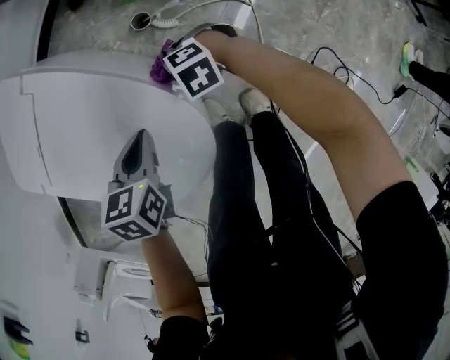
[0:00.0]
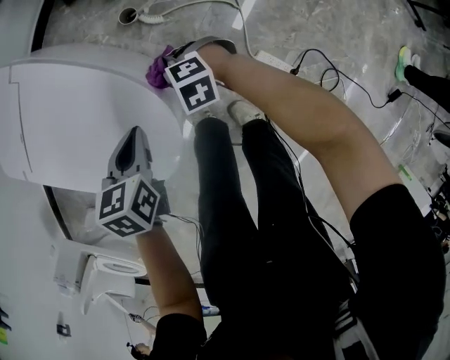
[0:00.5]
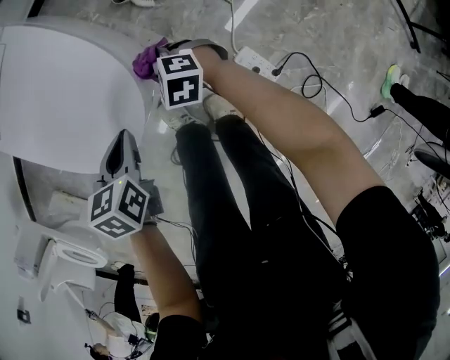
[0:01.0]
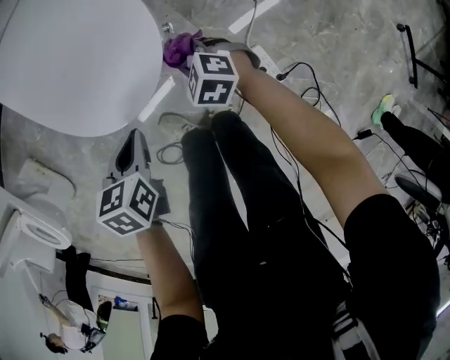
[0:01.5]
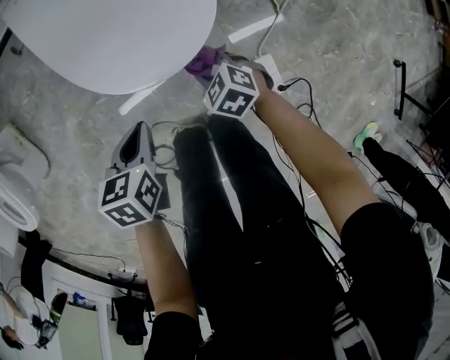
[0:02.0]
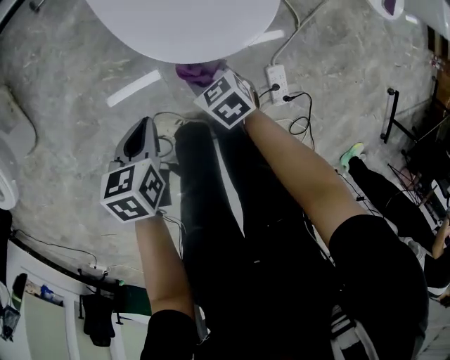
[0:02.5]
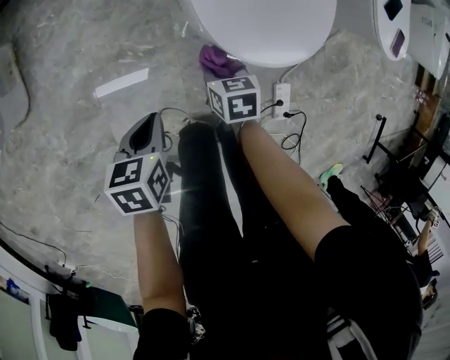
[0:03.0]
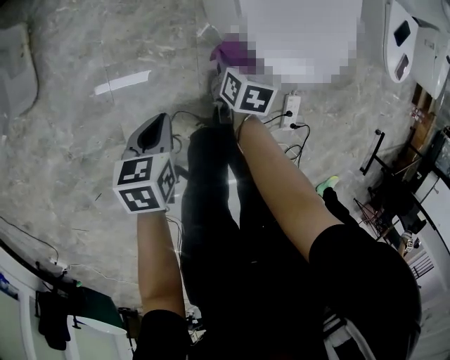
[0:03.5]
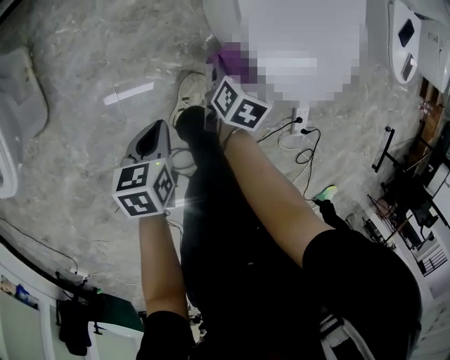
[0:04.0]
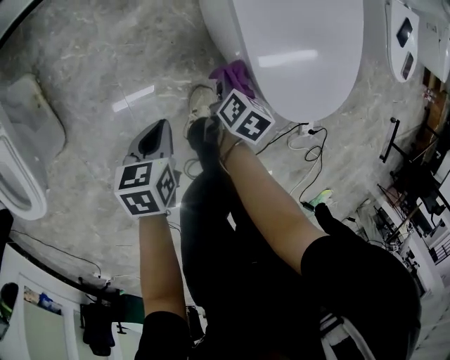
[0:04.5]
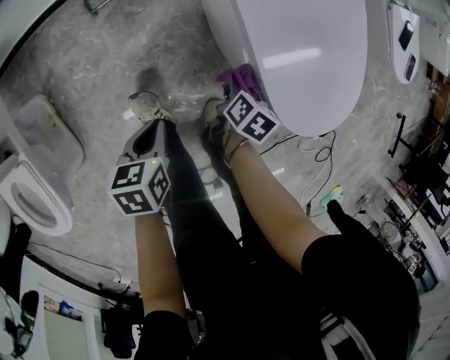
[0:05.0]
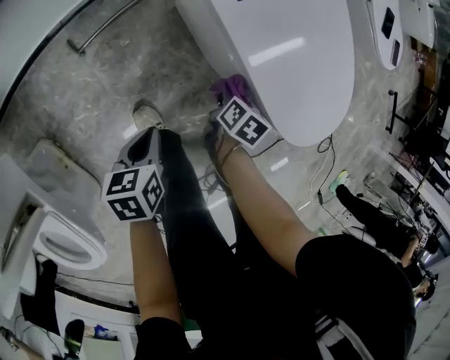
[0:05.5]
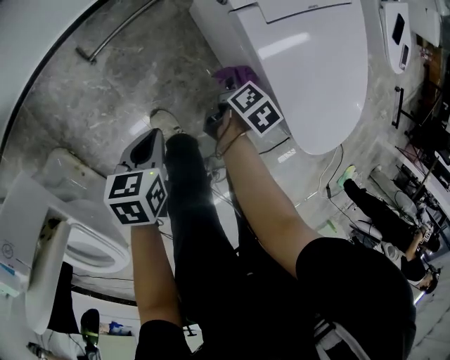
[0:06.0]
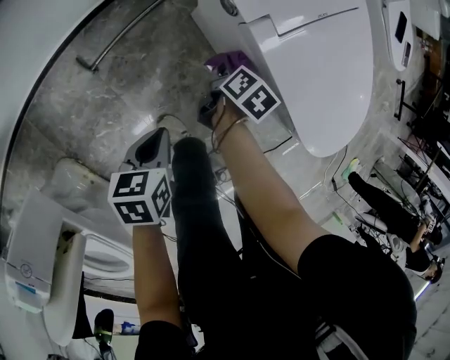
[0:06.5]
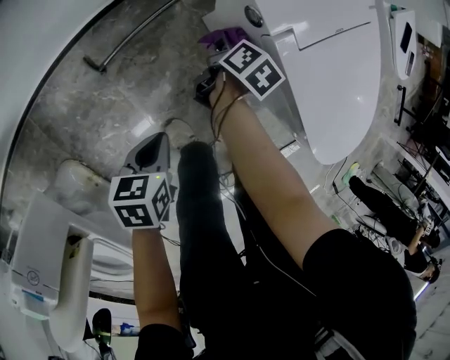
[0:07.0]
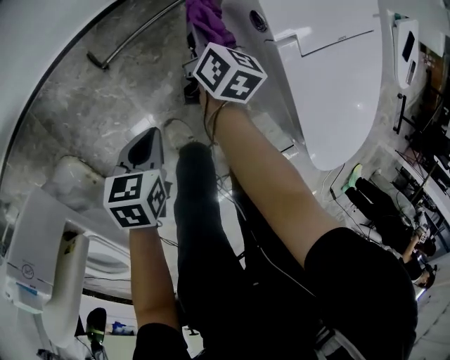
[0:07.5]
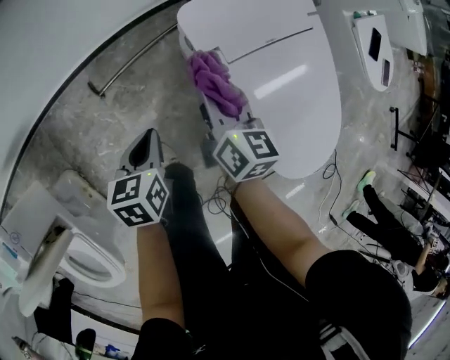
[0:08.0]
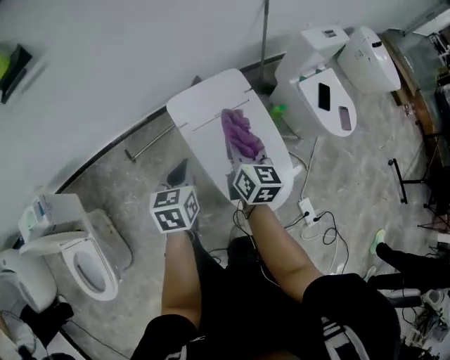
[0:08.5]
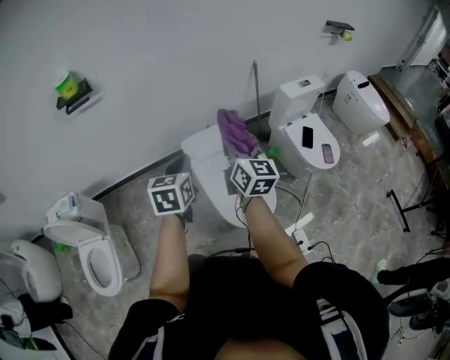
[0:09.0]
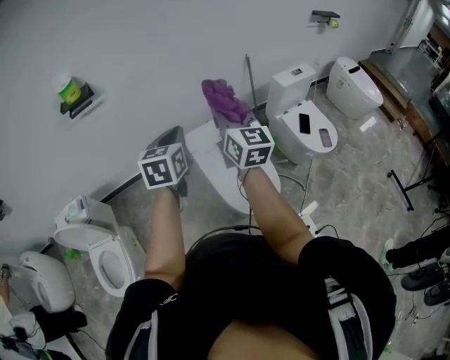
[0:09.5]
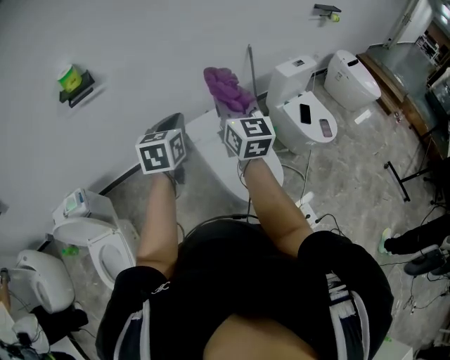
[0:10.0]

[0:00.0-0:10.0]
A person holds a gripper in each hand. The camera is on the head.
0:00.0 to 0:02.0: The right gripper ends up roughly 25 cm from where it was. Meanwhile the left gripper ends up roughly 30 cm from where it was, and swivels roughly 40 degrees.
0:02.0 to 0:04.0: The left gripper ends up some 30 cm from where it was. The right gripper changes place by about 30 cm, and rotates around the line of its fingers by some 60 degrees, clockwise from behind.
0:04.0 to 0:06.0: The right gripper moves approximately 30 cm, and rolls clockwise, seen from behind, by approximately 40 degrees. The left gripper moves about 40 cm, and swivels about 30 degrees.
0:06.0 to 0:08.0: The right gripper goes some 25 cm upward, and angles its fingers upward, by some 40 degrees. Meanwhile the left gripper ends up about 15 cm from where it was.
0:08.0 to 0:10.0: The two grippers go approximately 60 cm upward. The left gripper swivels roughly 40 degrees. The right gripper tips its fingers upward by some 30 degrees.

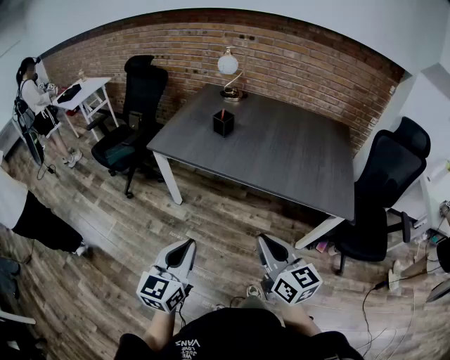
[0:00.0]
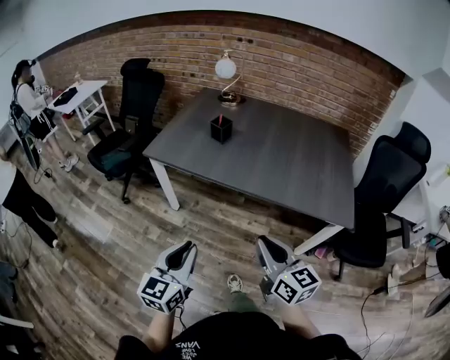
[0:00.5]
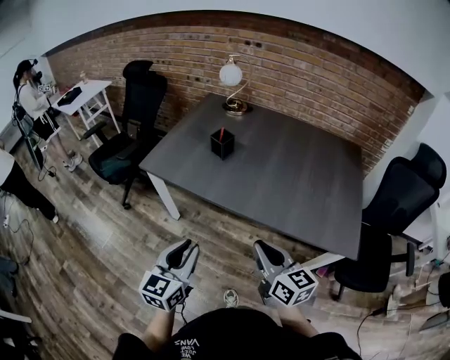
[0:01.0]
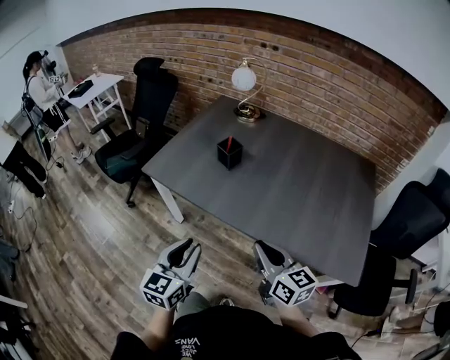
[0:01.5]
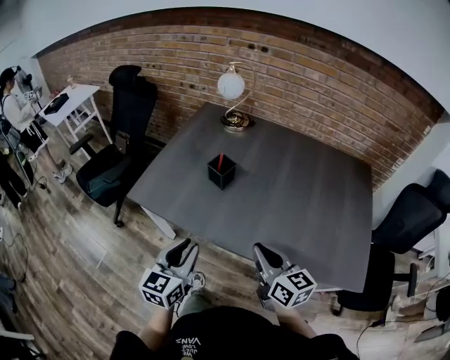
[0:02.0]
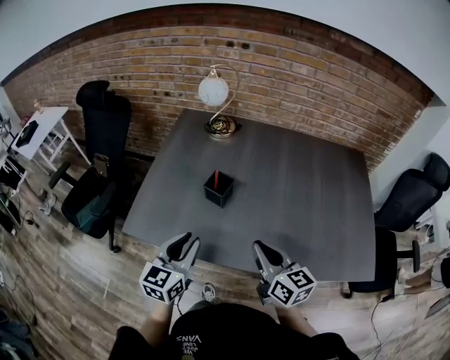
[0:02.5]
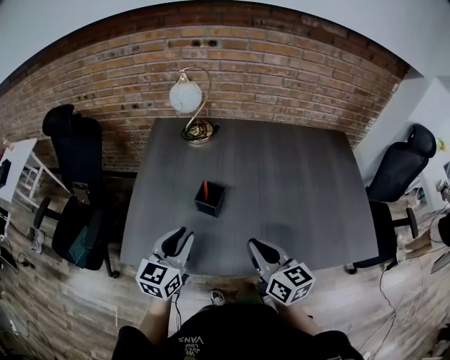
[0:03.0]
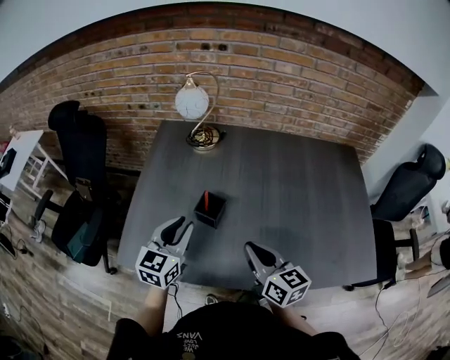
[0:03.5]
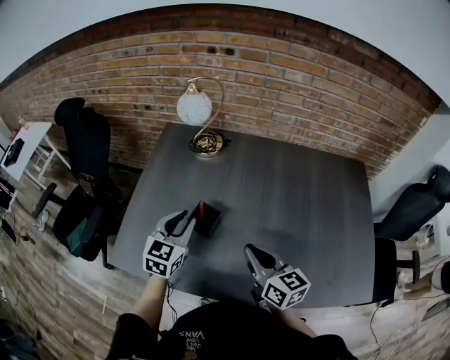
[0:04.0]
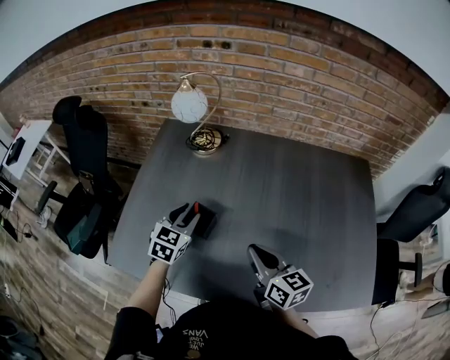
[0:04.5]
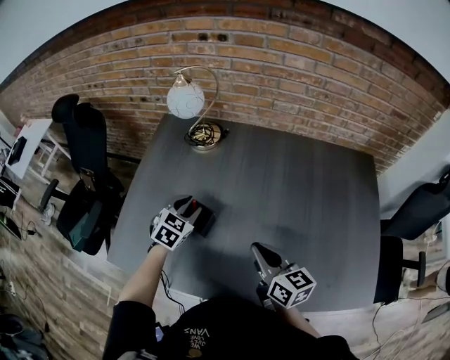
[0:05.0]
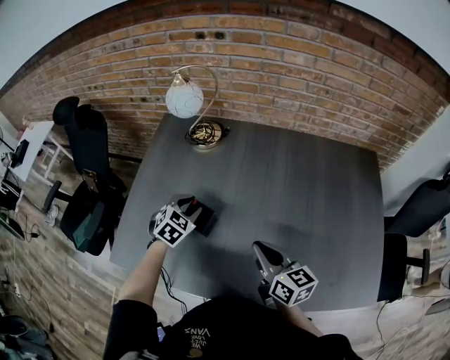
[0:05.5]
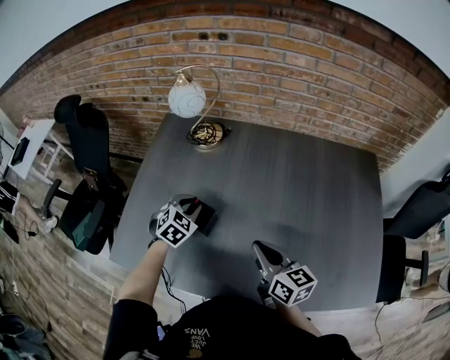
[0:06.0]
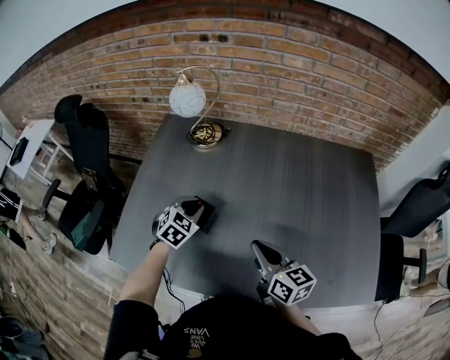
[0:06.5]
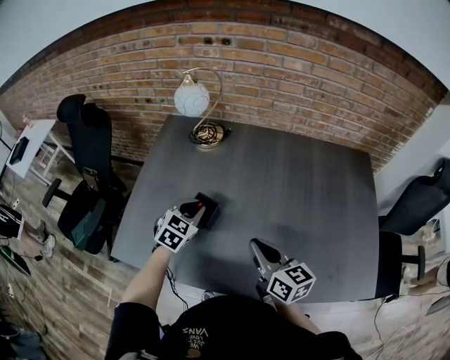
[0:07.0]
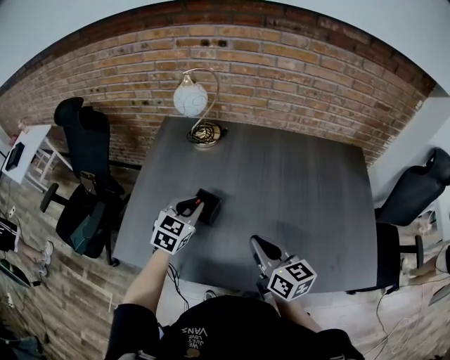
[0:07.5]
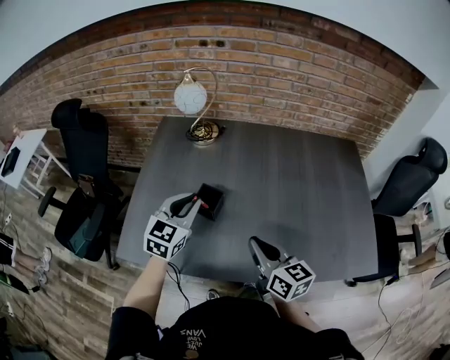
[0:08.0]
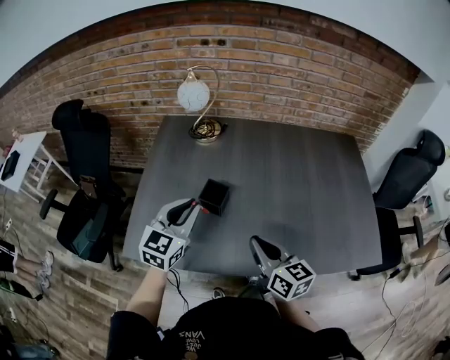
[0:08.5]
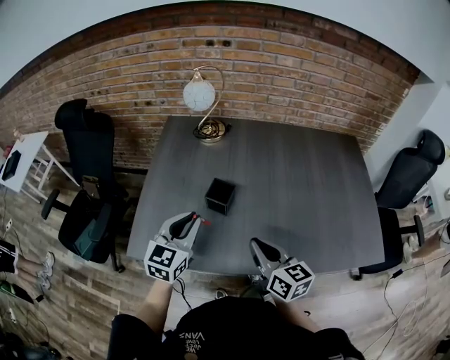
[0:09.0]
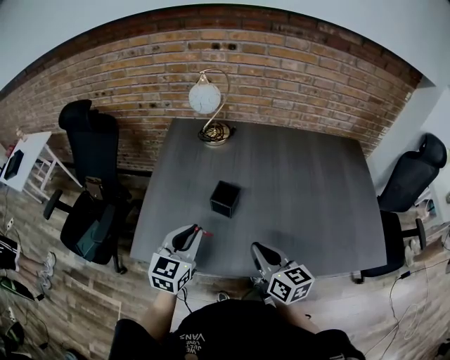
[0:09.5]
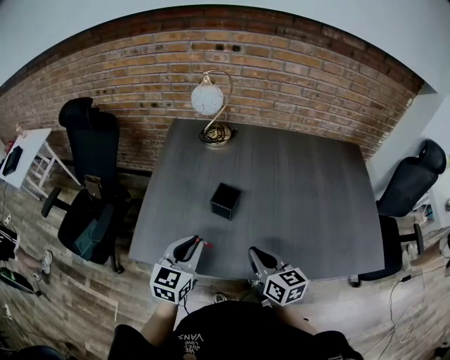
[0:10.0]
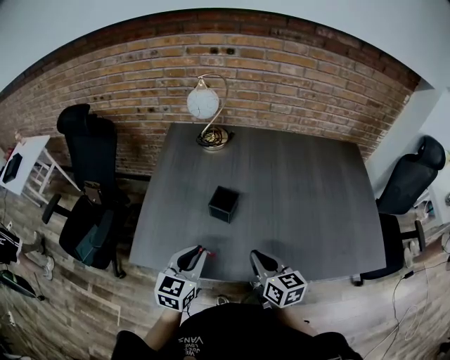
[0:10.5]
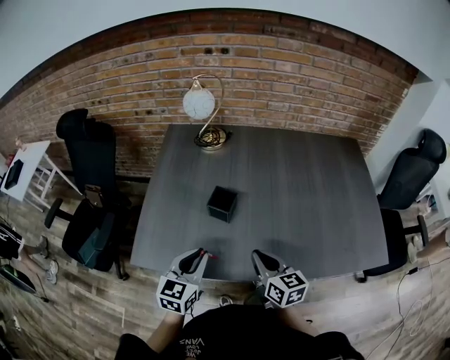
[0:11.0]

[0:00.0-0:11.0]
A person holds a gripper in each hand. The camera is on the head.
0:00.0 to 0:02.0: Both grippers travel together forward, some 35 cm.
0:02.0 to 0:03.5: The left gripper is displaced forward by roughly 30 cm, while the right gripper heads forward and to the left, covering some 20 cm.
0:03.5 to 0:05.5: The left gripper moves forward, downward and to the right, some 20 cm, and tilts its fingers roughly 30 degrees downward, while the right gripper moves to the right and forward, approximately 10 cm.
0:05.5 to 0:07.5: The right gripper goes approximately 5 cm backward. The left gripper travels upward and backward by some 10 cm, and swivels roughly 20 degrees.
0:07.5 to 0:09.0: The right gripper is displaced backward and to the left by approximately 10 cm. The left gripper heads backward, to the left and upward, covering about 15 cm.
0:09.0 to 0:11.0: The right gripper is displaced downward by some 5 cm. Meanwhile the left gripper shifts some 10 cm backward and downward.

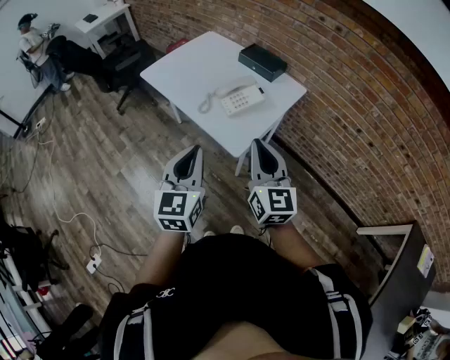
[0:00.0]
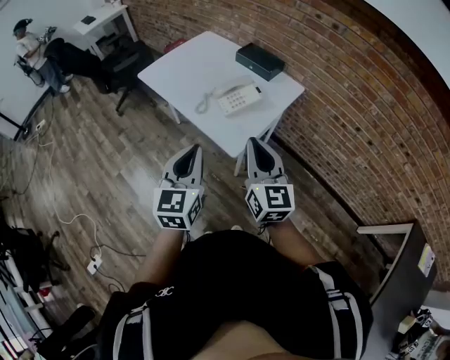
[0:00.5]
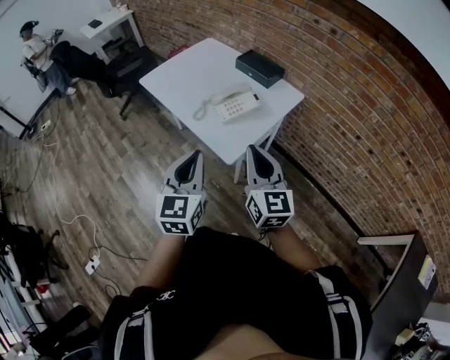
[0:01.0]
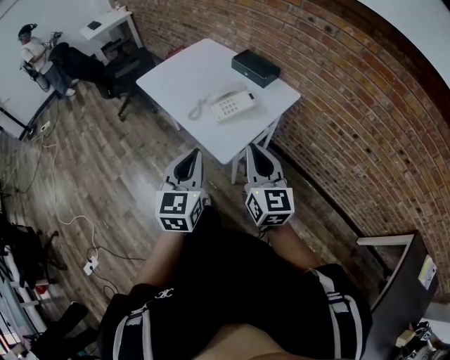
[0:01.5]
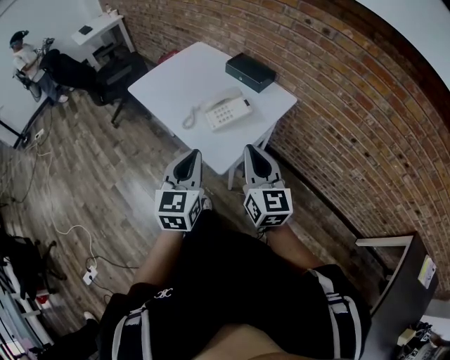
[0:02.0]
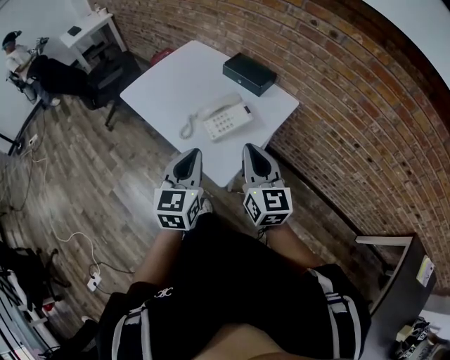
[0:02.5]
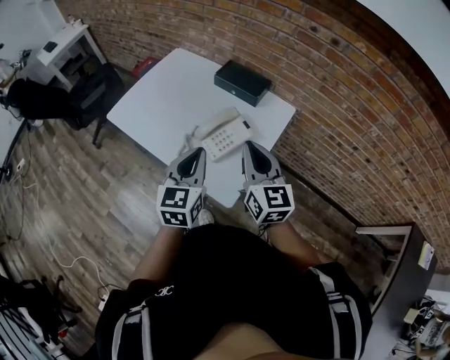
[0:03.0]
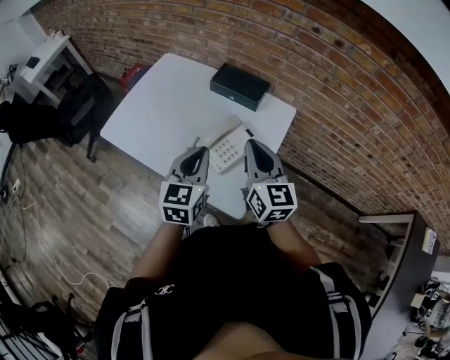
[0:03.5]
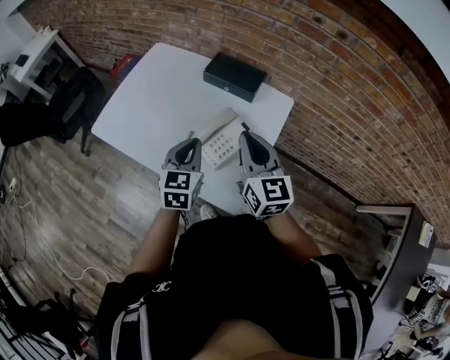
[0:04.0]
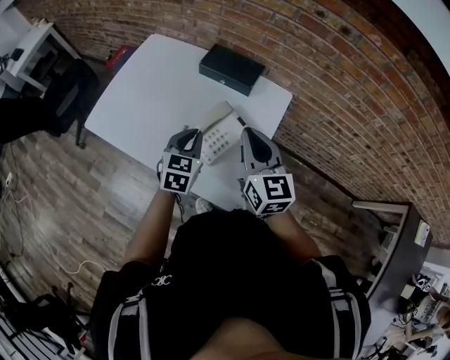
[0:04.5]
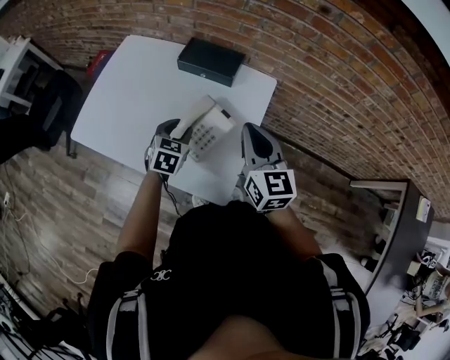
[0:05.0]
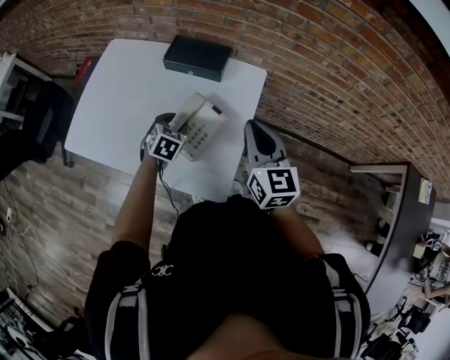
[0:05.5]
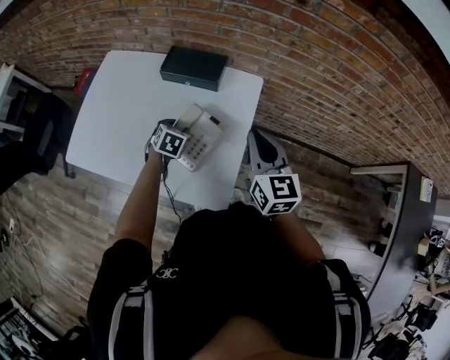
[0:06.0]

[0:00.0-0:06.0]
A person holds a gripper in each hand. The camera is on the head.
0:00.0 to 0:02.0: Both grippers travel together to the right and forward, approximately 10 cm.
0:02.0 to 0:04.0: The grippers both shift forward by roughly 30 cm. The left gripper swivels about 20 degrees.
0:04.0 to 0:06.0: The left gripper shifts roughly 20 cm downward and forward, tips its fingers downward by some 30 degrees, and opens up, while the right gripper is displaced to the right by roughly 10 cm.
